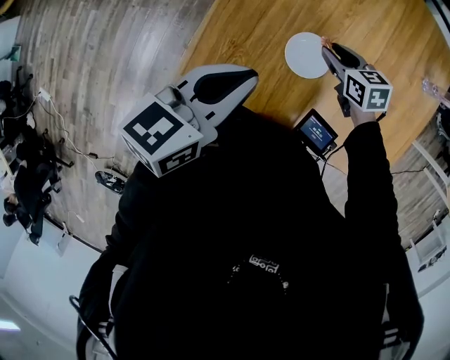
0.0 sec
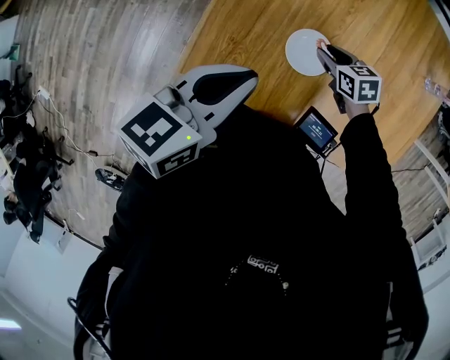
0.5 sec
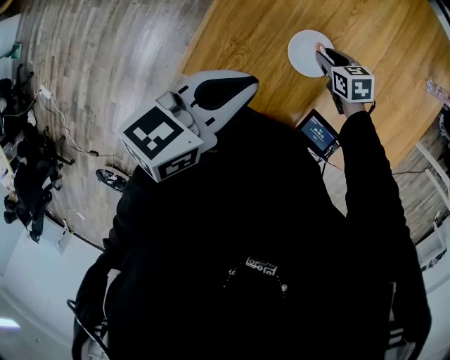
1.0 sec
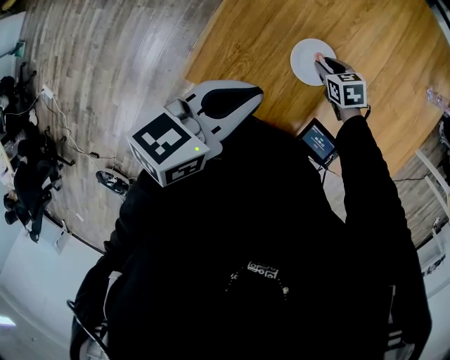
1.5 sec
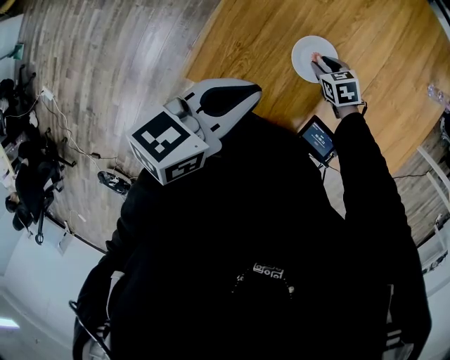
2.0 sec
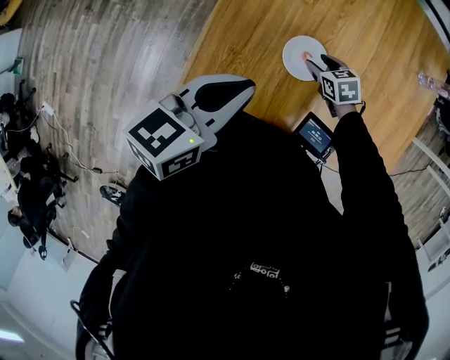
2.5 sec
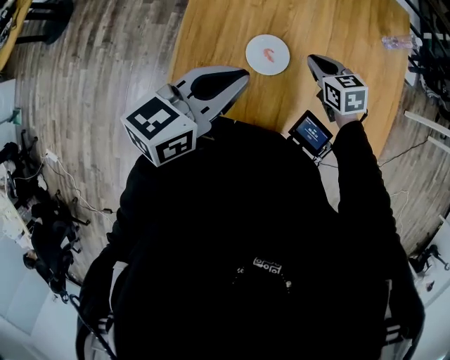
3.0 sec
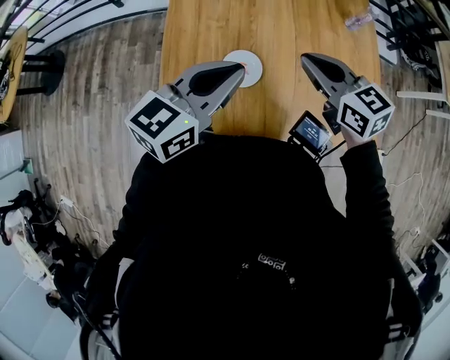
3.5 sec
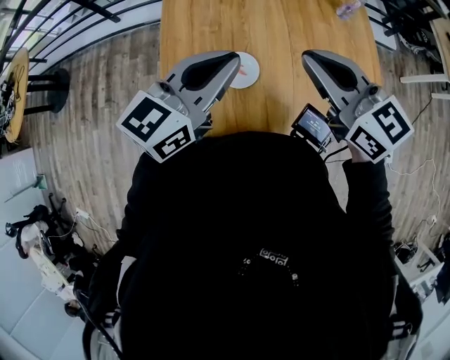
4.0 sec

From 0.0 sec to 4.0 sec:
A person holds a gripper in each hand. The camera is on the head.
From 0.0 sec to 2.0 sec: The right gripper moves downward, some 10 cm.
From 2.0 sec to 4.0 sec: The left gripper moves upward, to the right and forward, some 15 cm, and turns by roughly 40 degrees; the right gripper travels upward by some 40 cm, angles its fingers upward, by about 50 degrees, and closes its fingers.

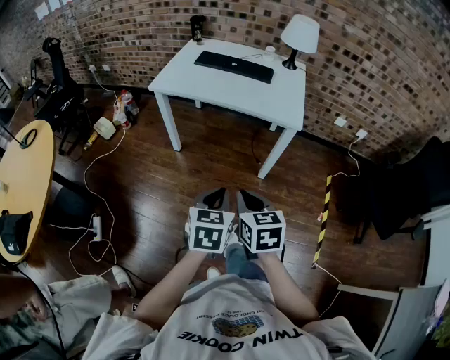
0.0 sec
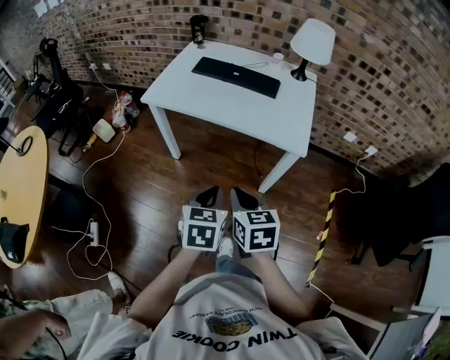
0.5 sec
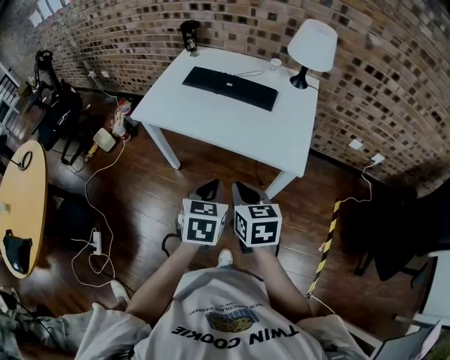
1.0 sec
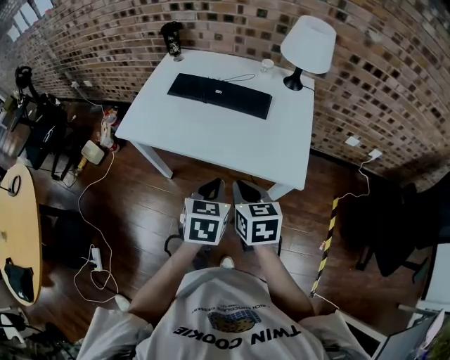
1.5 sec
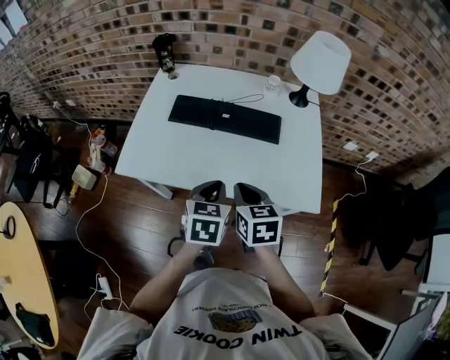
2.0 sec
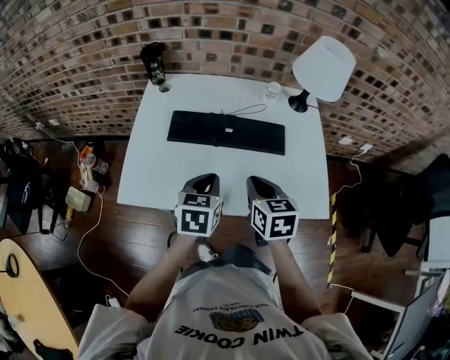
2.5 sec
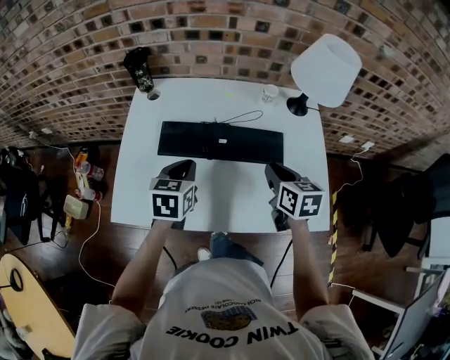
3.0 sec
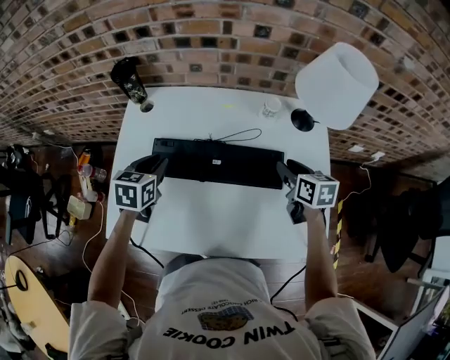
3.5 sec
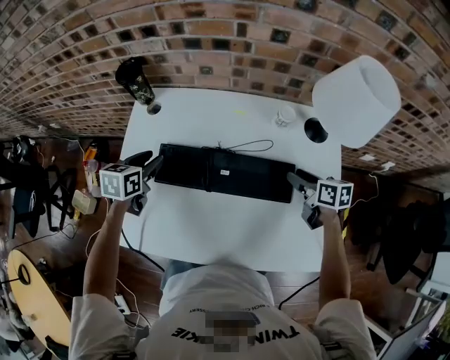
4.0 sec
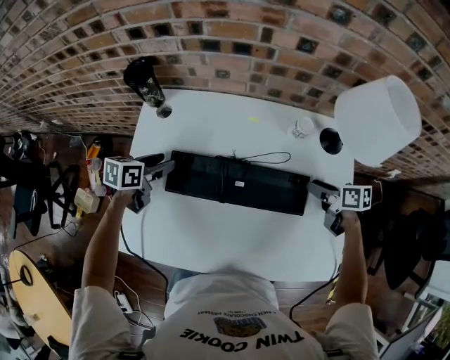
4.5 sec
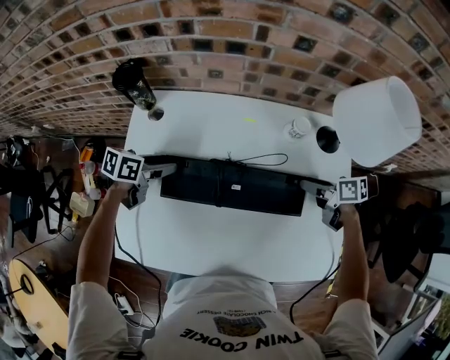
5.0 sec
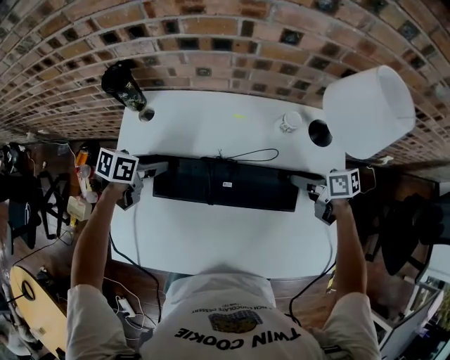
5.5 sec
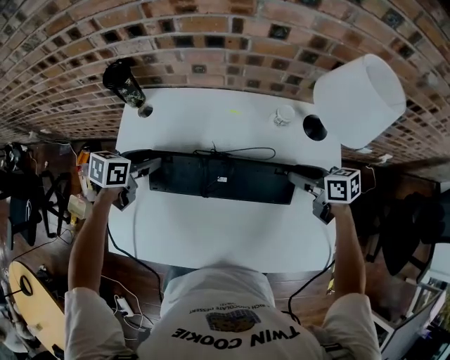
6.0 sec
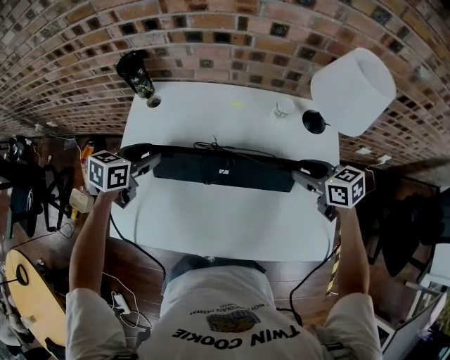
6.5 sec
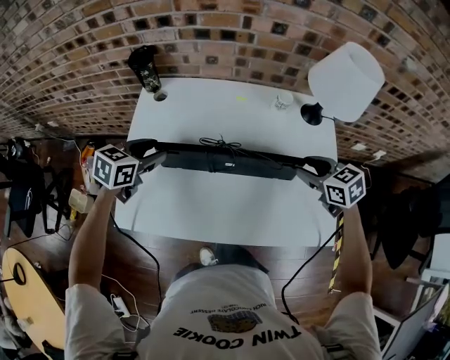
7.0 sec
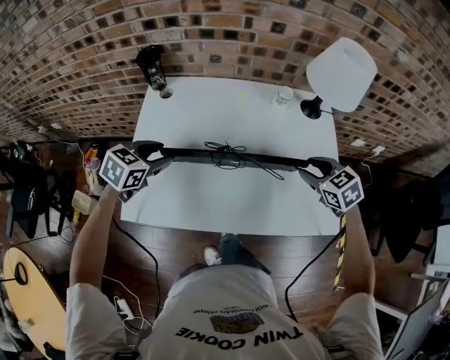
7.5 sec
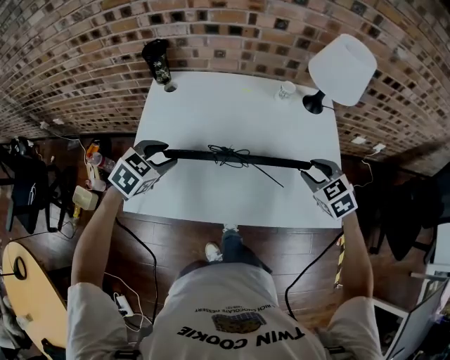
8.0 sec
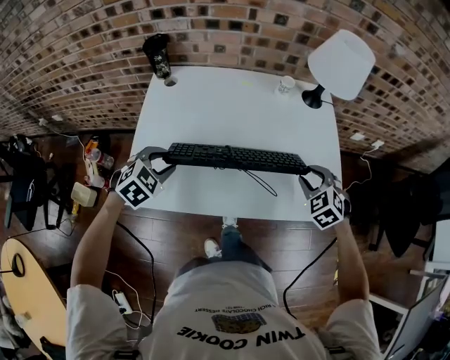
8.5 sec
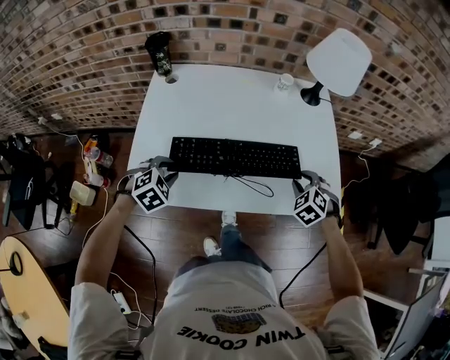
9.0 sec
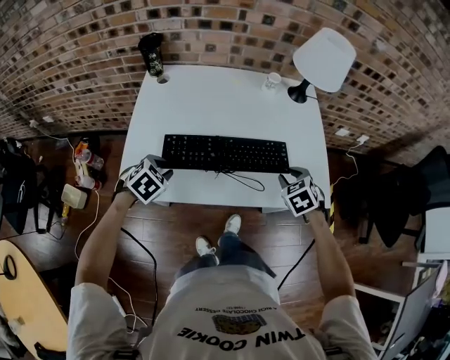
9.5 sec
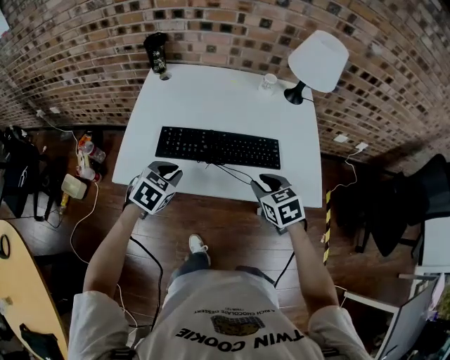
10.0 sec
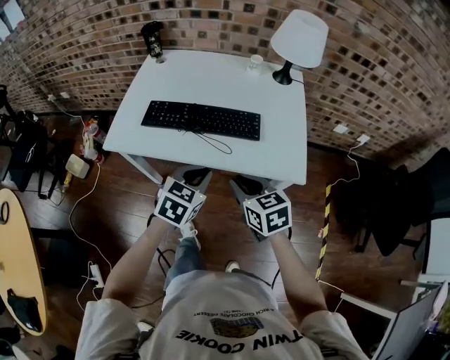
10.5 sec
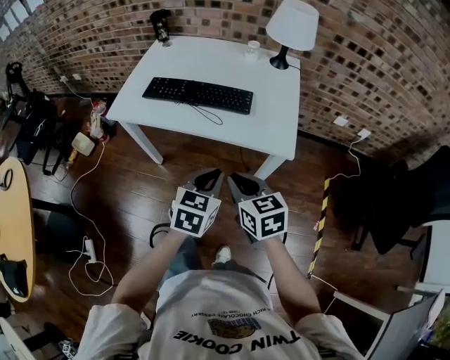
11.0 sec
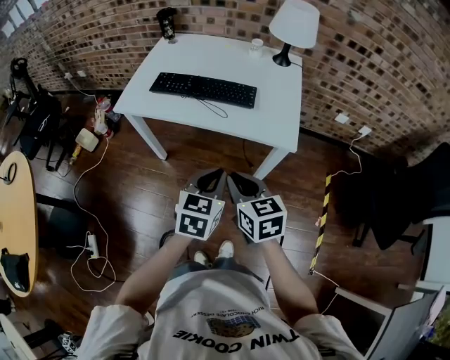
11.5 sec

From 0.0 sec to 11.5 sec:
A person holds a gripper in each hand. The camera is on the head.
From 0.0 sec to 2.0 sec: The pair of grippers is taken forward, approximately 50 cm.
From 2.0 sec to 4.0 sec: The left gripper travels forward and to the left by roughly 40 cm, and opens its fingers. Meanwhile the right gripper travels forward and to the right by some 35 cm, rotates approximately 30 degrees, and opens its fingers.
From 4.0 sec to 6.0 sec: The left gripper swivels some 20 degrees.
From 6.0 sec to 7.5 sec: Both grippers move backward and upward, about 15 cm. The left gripper changes its angle by roughly 30 degrees. The right gripper swivels roughly 40 degrees.
From 7.5 sec to 9.5 sec: Both grippers travel together backward and downward, some 15 cm. The right gripper changes its angle by some 20 degrees. The left gripper turns by roughly 20 degrees.
From 9.5 sec to 11.5 sec: The left gripper moves approximately 50 cm, points its fingers about 30 degrees further upward, and closes up; the right gripper ends up about 35 cm from where it was, and swivels roughly 40 degrees.

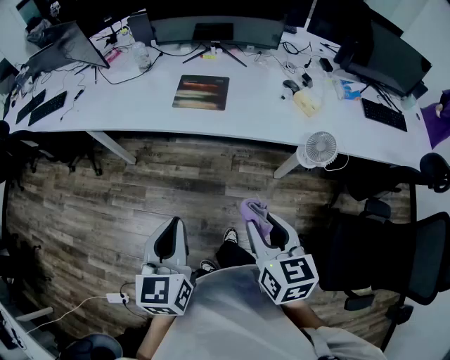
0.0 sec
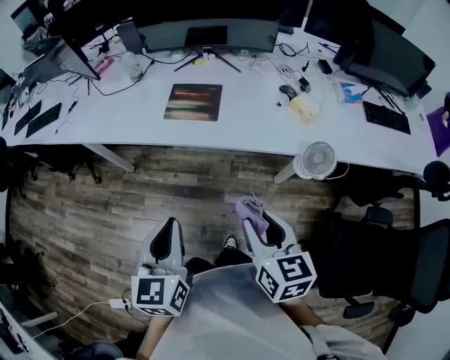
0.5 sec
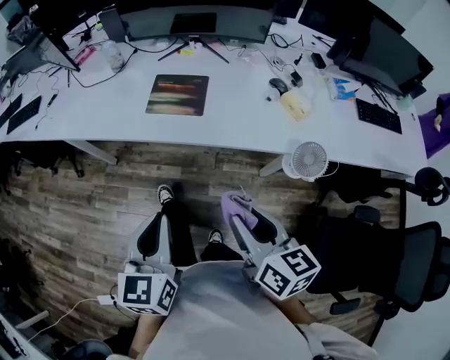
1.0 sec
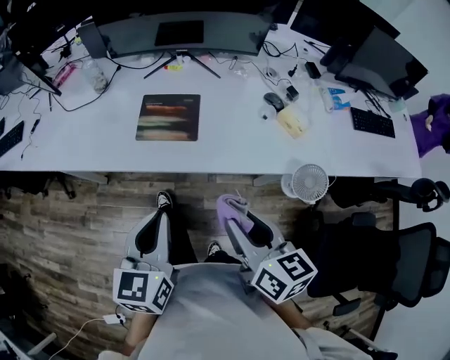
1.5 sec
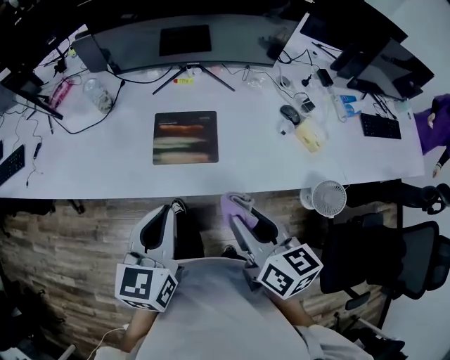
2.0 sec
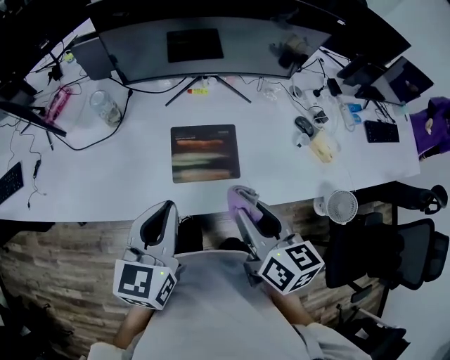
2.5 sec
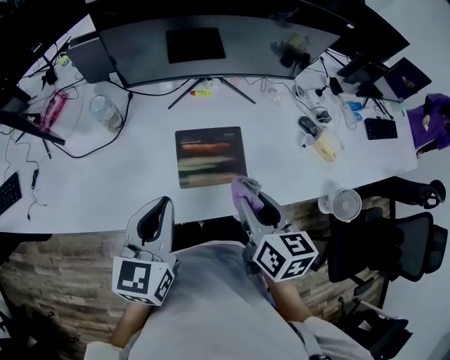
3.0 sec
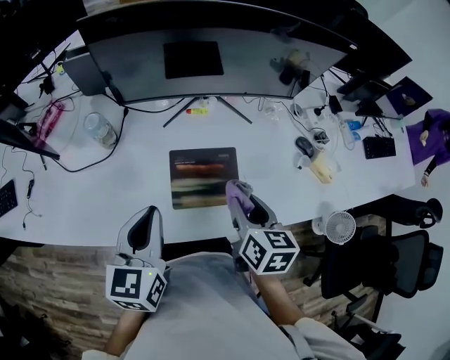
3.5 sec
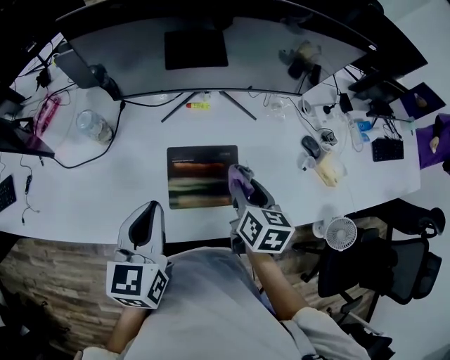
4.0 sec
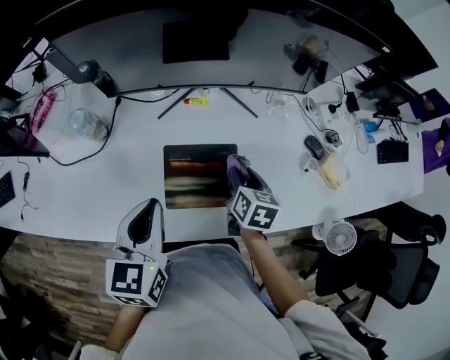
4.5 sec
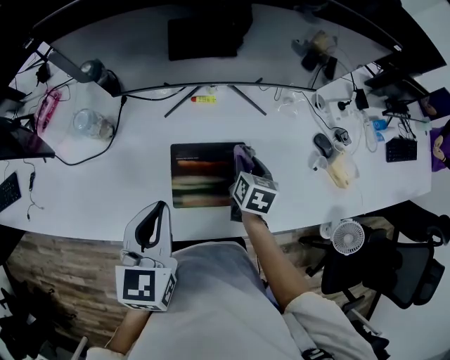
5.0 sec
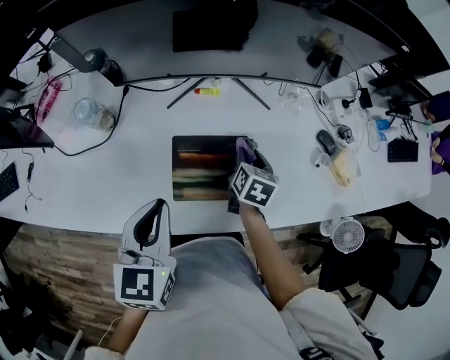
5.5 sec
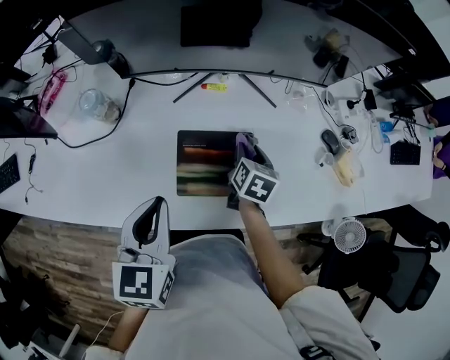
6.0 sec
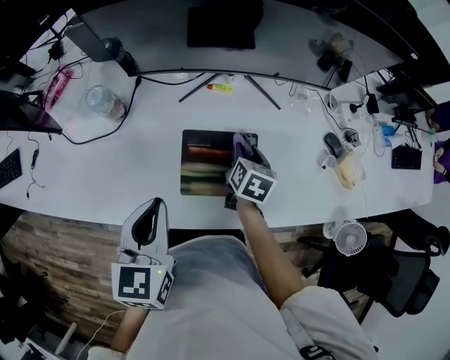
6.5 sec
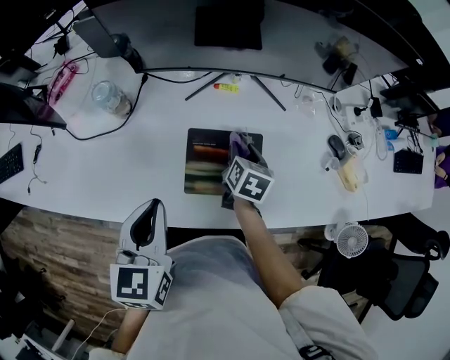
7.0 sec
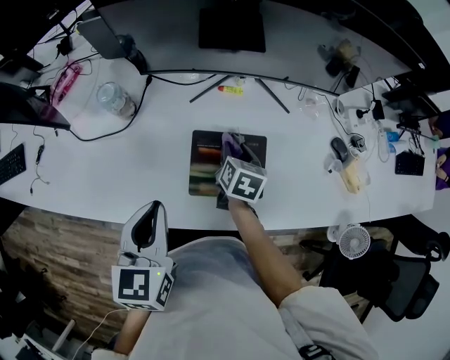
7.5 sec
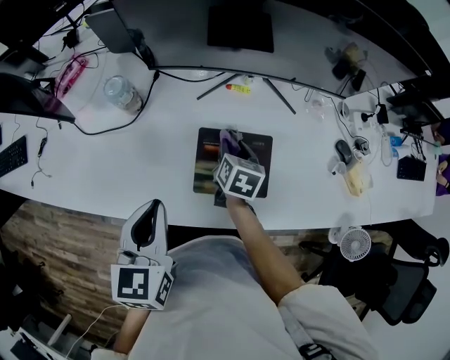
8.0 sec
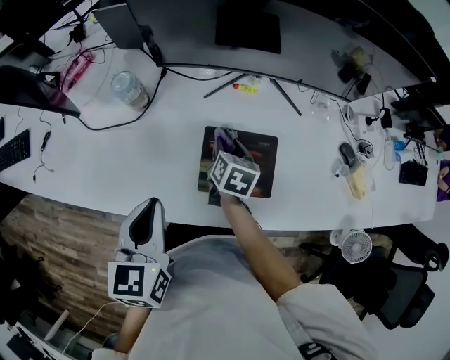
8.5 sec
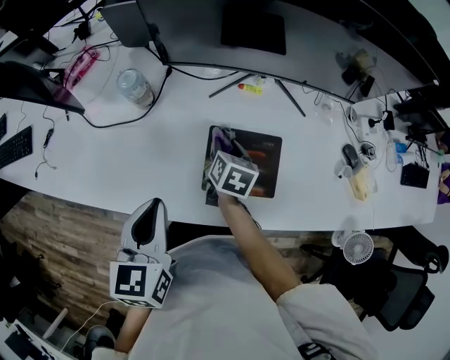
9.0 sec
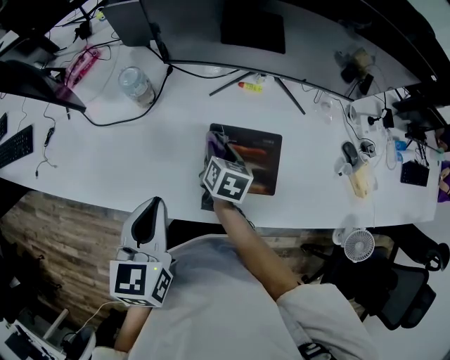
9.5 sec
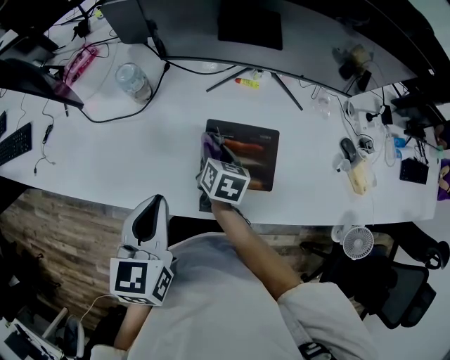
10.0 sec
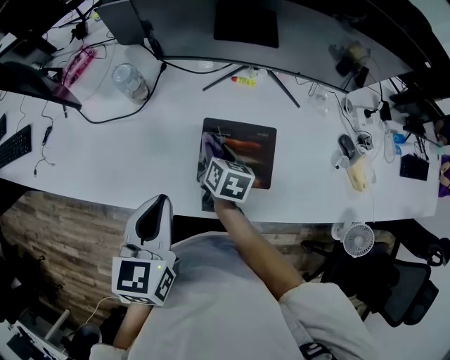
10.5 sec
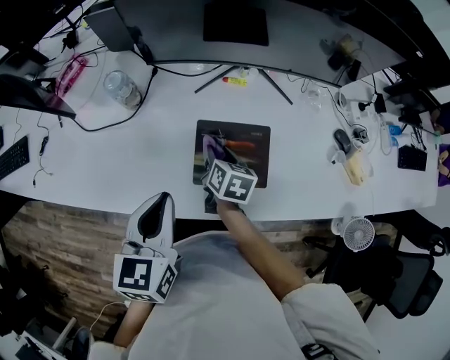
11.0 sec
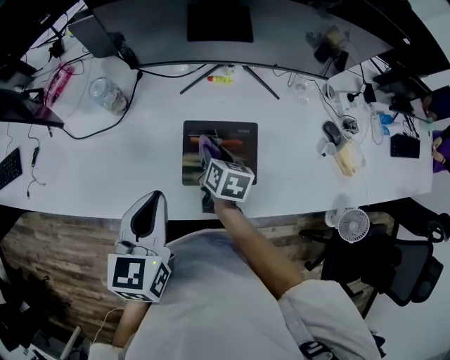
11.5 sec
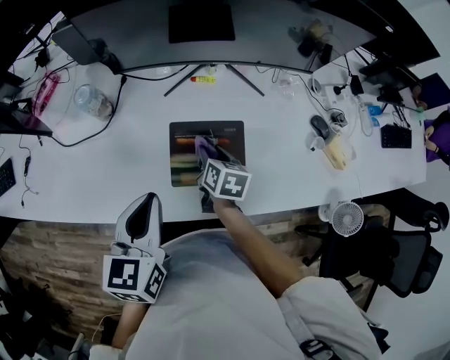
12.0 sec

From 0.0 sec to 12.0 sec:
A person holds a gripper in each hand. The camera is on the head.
From 0.0 sec to 2.0 sec: Both grippers move forward, approximately 35 cm.
From 2.0 sec to 4.0 sec: The left gripper is displaced forward and to the left by some 25 cm. The right gripper goes about 30 cm forward and downward, and turns by about 20 degrees.
From 4.0 sec to 6.0 sec: The right gripper shifts some 15 cm downward and forward.
From 6.0 sec to 8.0 sec: The right gripper moves to the left, about 10 cm, while the left gripper is displaced to the left by some 5 cm.
From 8.0 sec to 10.0 sec: The right gripper moves to the left, some 10 cm.
From 10.0 sec to 12.0 sec: The two grippers go about 10 cm to the right.
